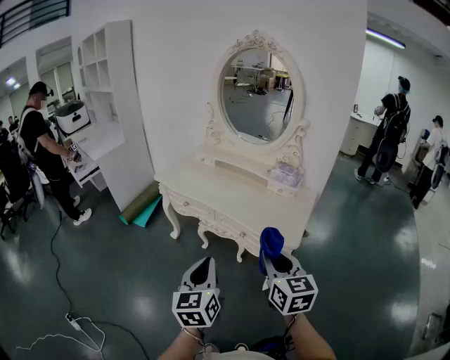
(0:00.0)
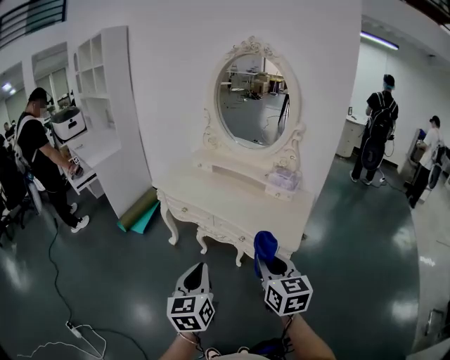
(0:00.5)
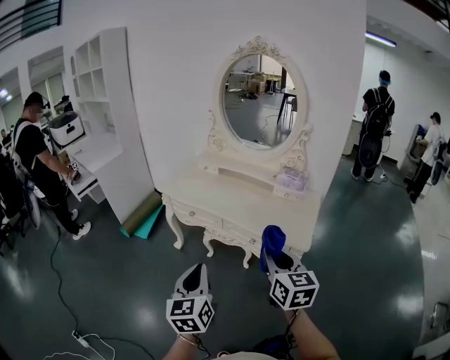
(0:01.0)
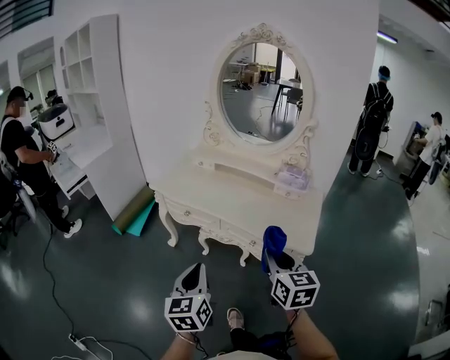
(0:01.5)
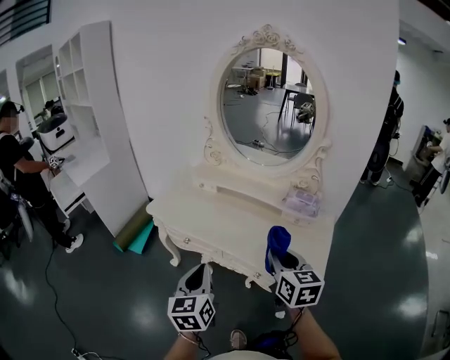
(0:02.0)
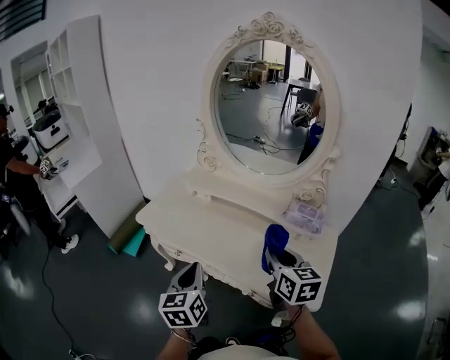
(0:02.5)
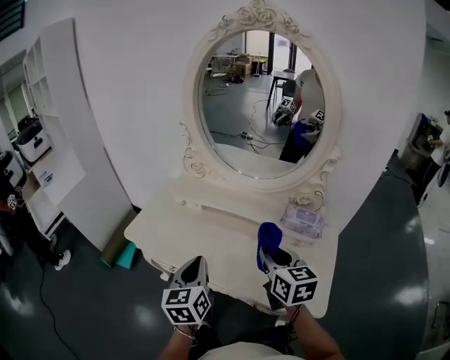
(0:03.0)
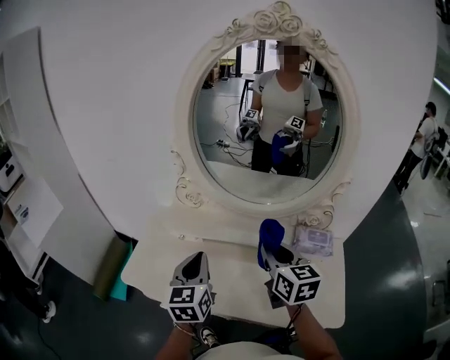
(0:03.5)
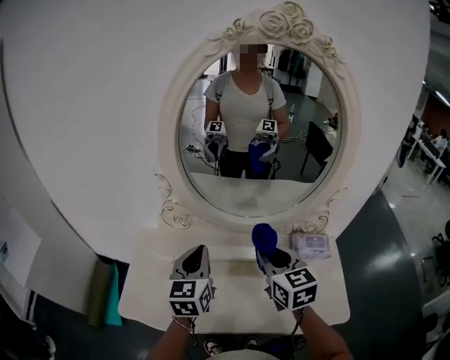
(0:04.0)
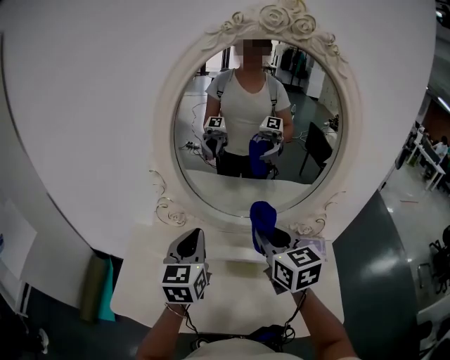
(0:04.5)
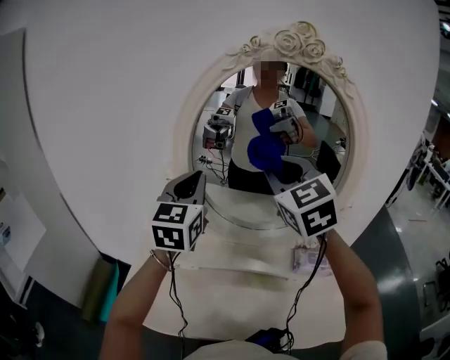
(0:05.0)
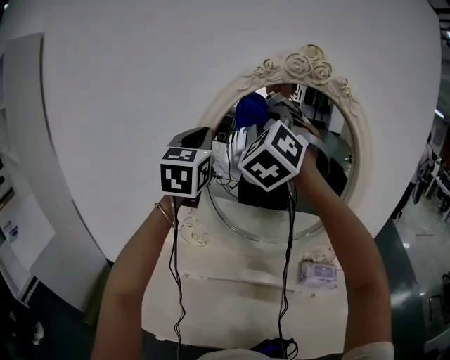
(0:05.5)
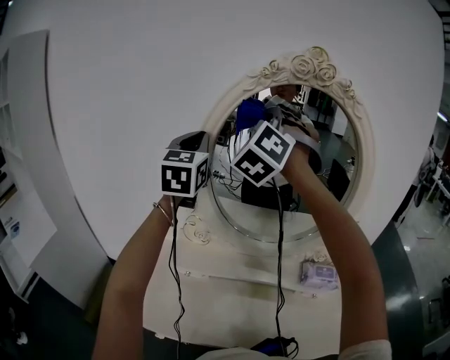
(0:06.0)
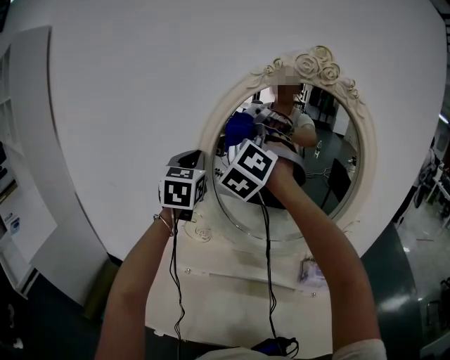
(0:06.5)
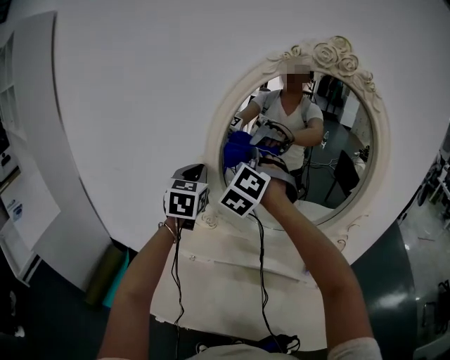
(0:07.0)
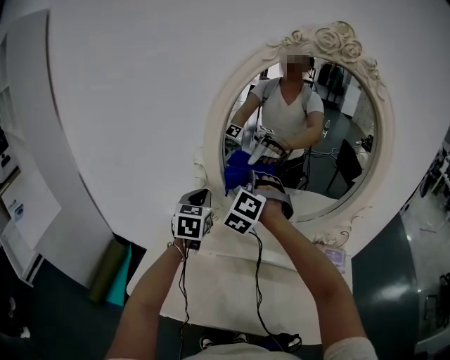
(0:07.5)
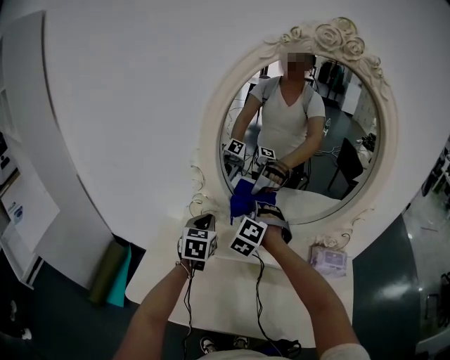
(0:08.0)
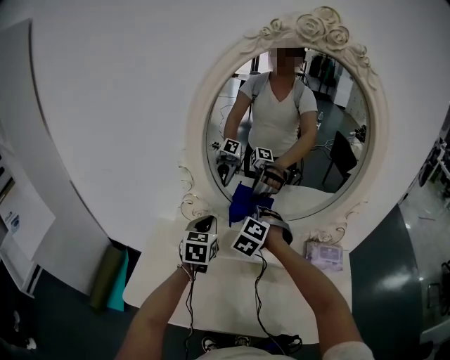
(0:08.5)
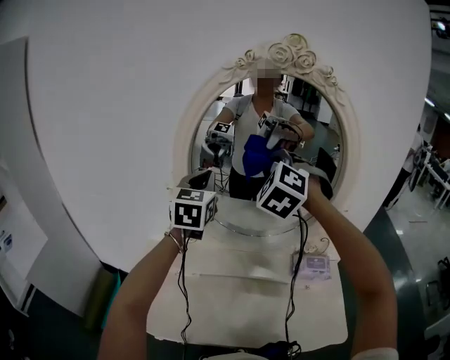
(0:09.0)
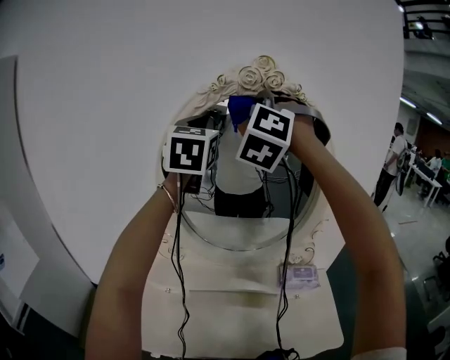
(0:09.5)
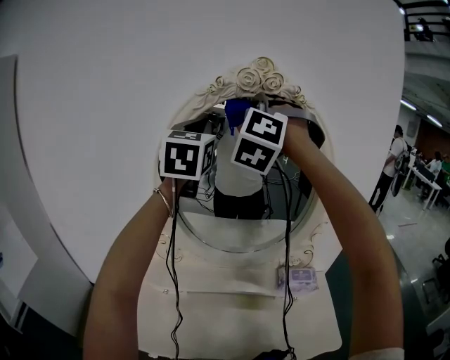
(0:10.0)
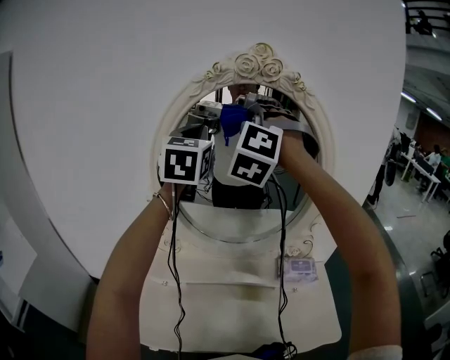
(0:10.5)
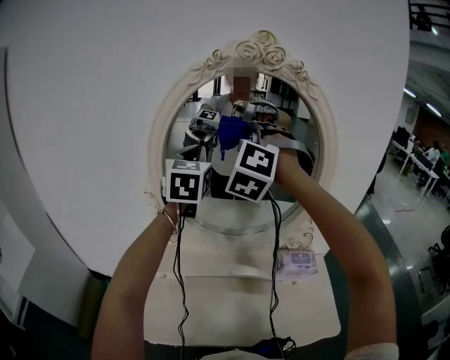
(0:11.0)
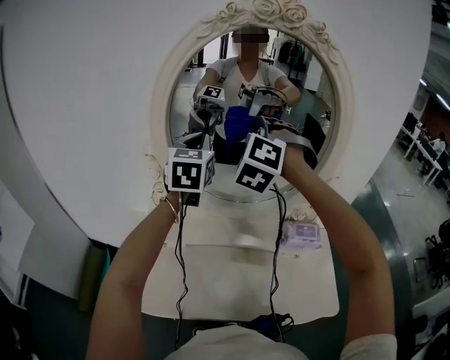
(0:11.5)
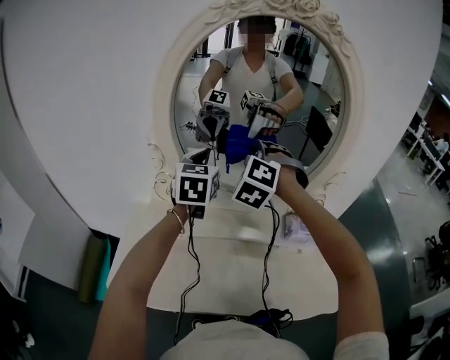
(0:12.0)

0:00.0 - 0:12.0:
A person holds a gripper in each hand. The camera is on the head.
0:00.0 - 0:02.0: The grippers both shift forward by roughly 25 cm.
0:02.0 - 0:04.0: Both grippers move forward, some 40 cm. The left gripper changes its angle by some 30 degrees.
0:04.0 - 0:06.0: Both grippers move upward and forward, approximately 35 cm. The left gripper rotates roughly 30 degrees. Meanwhile the right gripper rotates around the line of its fingers by some 60 degrees, counterclockwise from behind.
0:06.0 - 0:08.0: The grippers both shift downward by approximately 40 cm. The left gripper turns by roughly 30 degrees; the right gripper swivels roughly 30 degrees.
0:08.0 - 0:10.0: The grippers both shift upward by about 50 cm. The left gripper rotates about 30 degrees. The right gripper changes its angle by approximately 30 degrees.
0:10.0 - 0:12.0: The grippers both shift downward by approximately 30 cm. The right gripper changes its angle by roughly 30 degrees. The left gripper changes its angle by about 20 degrees.

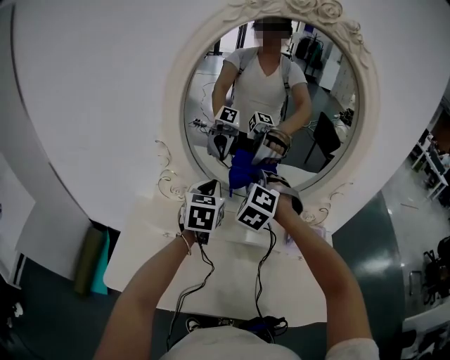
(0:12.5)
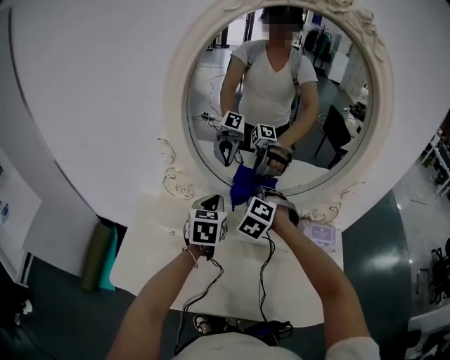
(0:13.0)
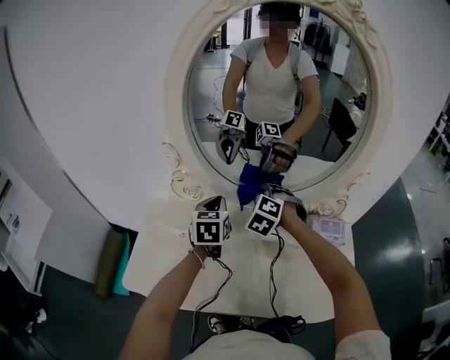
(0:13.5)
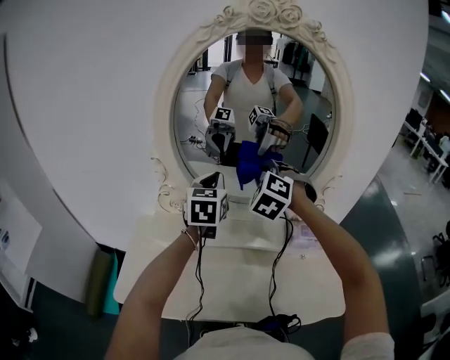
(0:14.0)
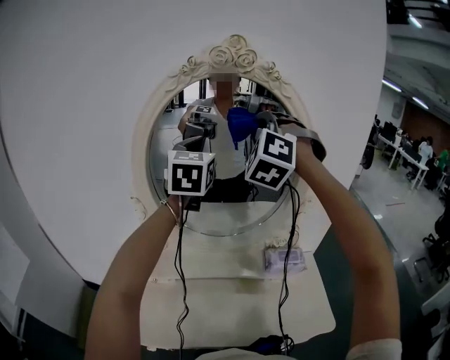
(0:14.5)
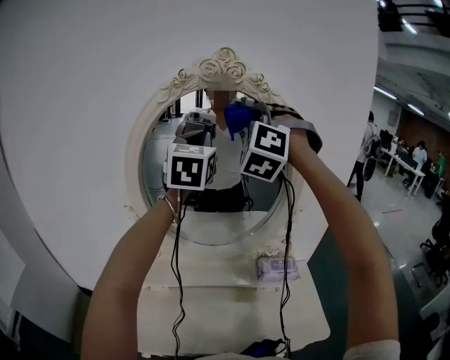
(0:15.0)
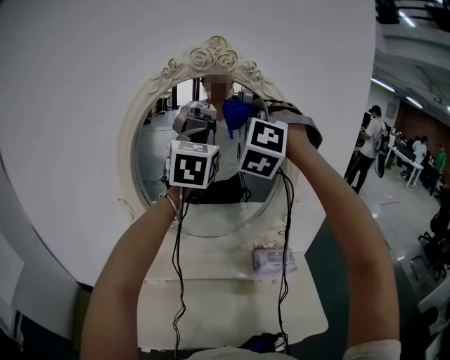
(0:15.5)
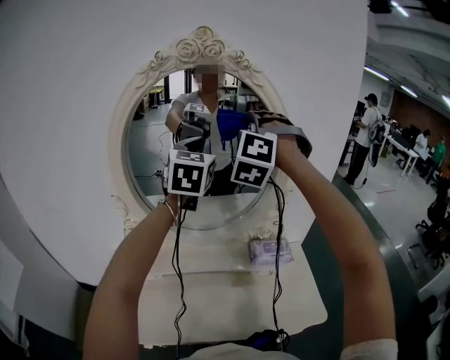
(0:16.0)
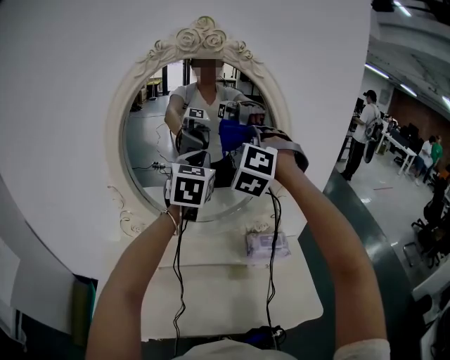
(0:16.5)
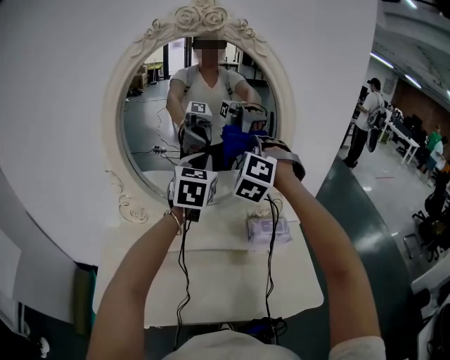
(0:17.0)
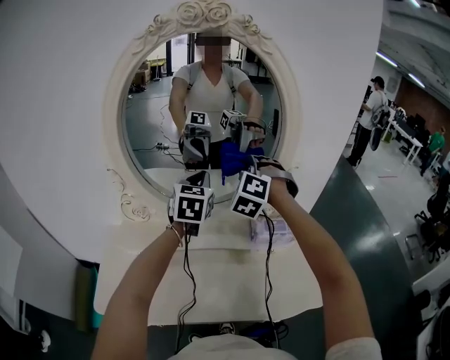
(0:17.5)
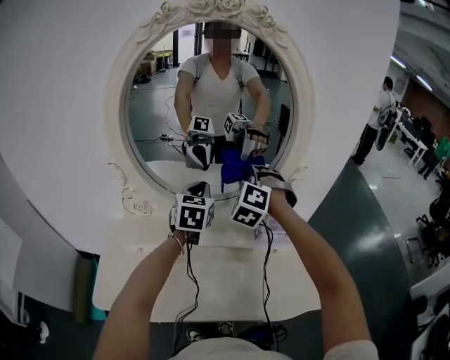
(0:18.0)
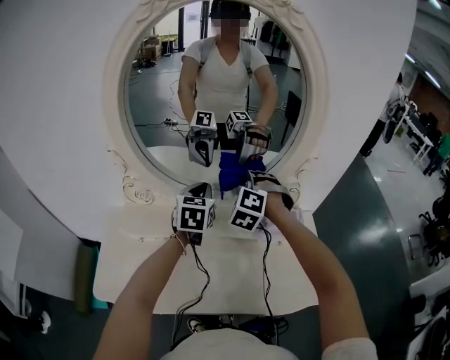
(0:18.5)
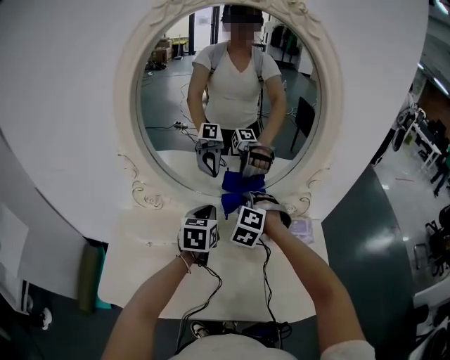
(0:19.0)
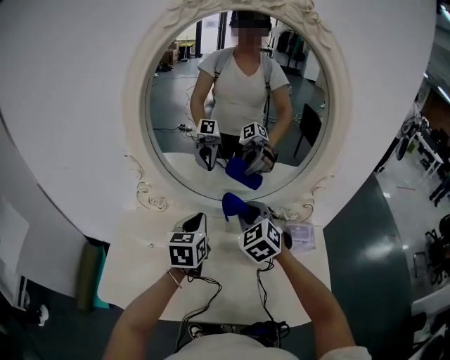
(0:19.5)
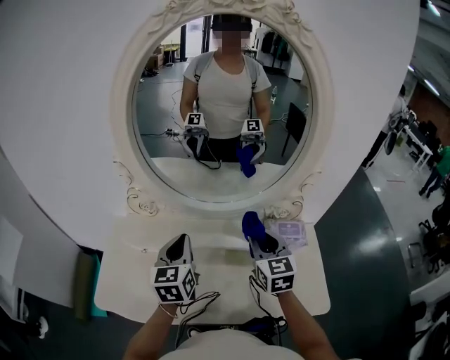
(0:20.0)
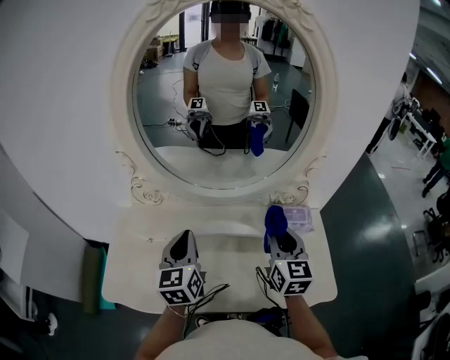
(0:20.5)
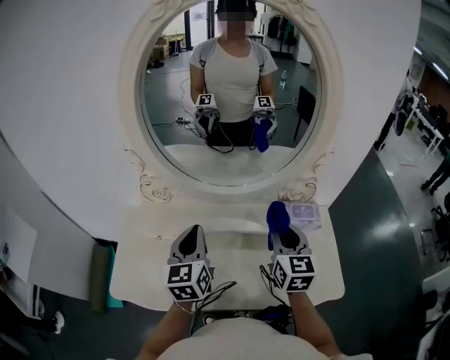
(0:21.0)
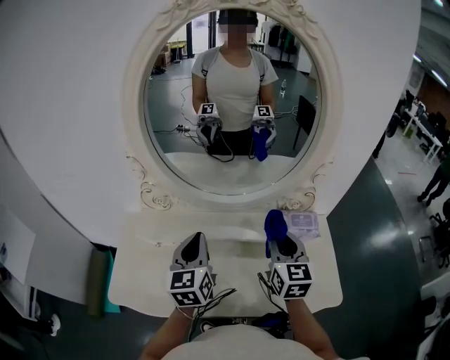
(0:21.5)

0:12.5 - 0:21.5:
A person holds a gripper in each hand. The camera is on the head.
0:12.5 - 0:14.5: The two grippers go roughly 30 cm upward. The right gripper rotates roughly 30 degrees; the left gripper changes its angle by roughly 30 degrees.
0:14.5 - 0:17.0: The left gripper travels downward and to the right by some 15 cm; the right gripper goes some 15 cm downward.
0:17.0 - 0:19.5: The right gripper shifts approximately 20 cm downward, and rotates approximately 40 degrees; the left gripper moves downward and to the left, roughly 25 cm, and swivels about 30 degrees.
0:19.5 - 0:21.5: The right gripper heads backward and to the right, covering roughly 15 cm, and twists roughly 40 degrees clockwise, seen from behind, while the left gripper goes approximately 10 cm backward.

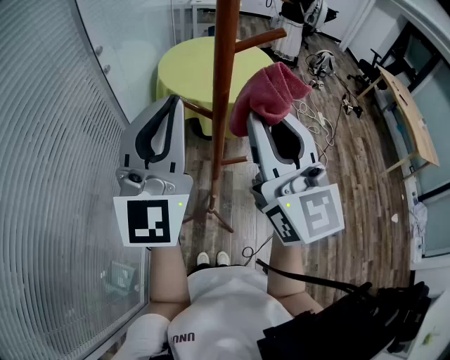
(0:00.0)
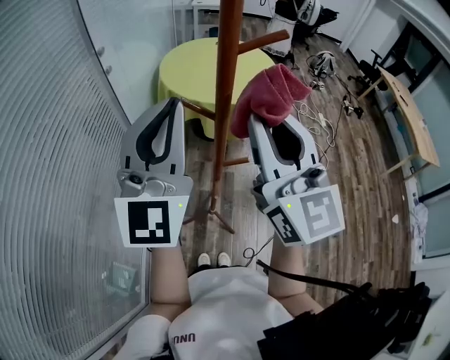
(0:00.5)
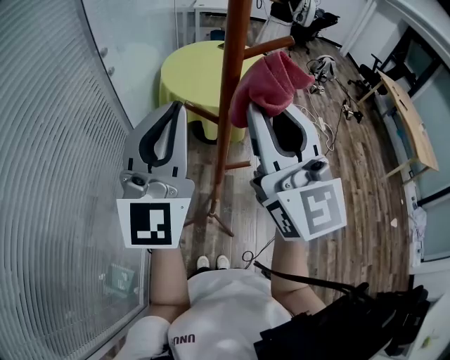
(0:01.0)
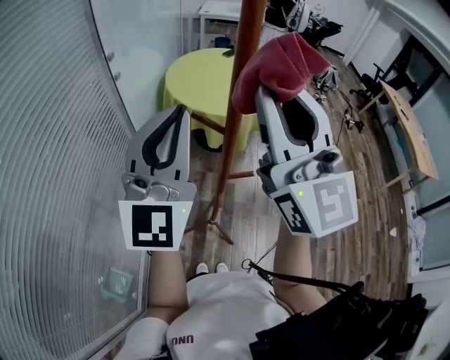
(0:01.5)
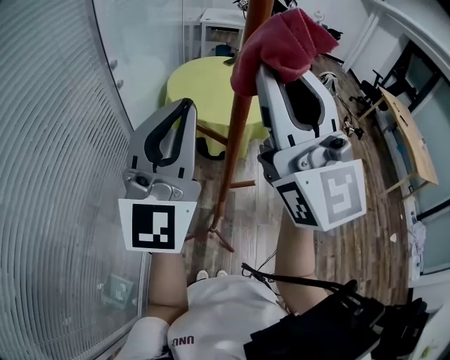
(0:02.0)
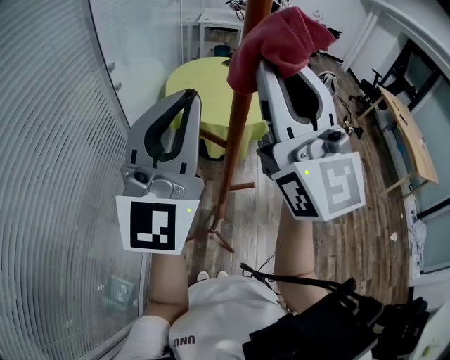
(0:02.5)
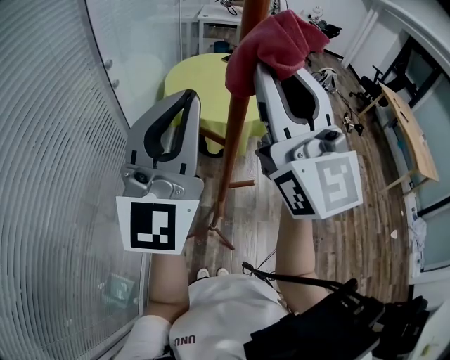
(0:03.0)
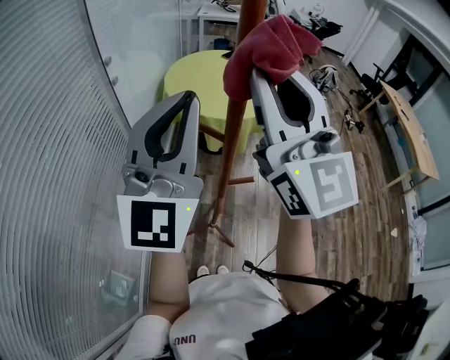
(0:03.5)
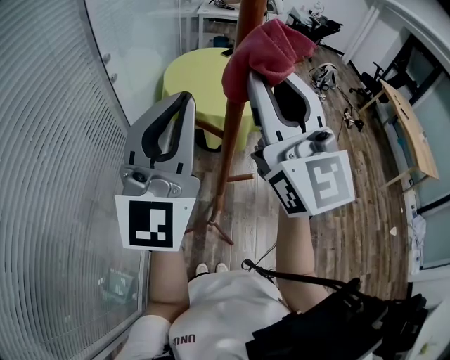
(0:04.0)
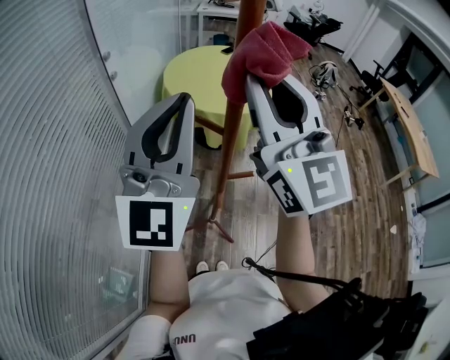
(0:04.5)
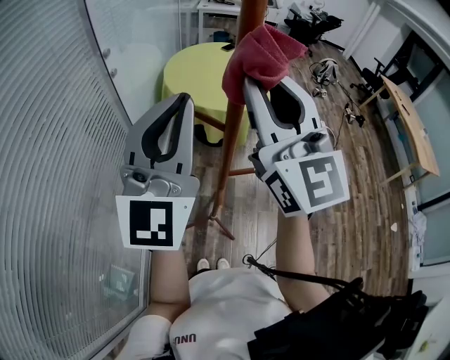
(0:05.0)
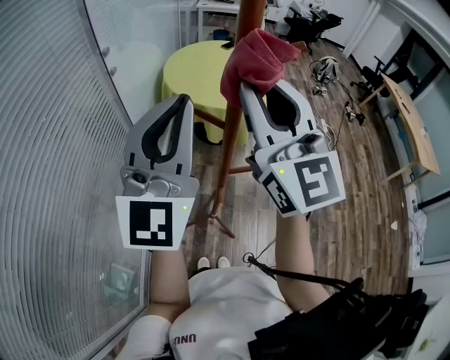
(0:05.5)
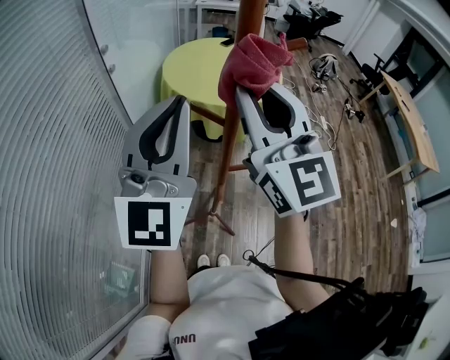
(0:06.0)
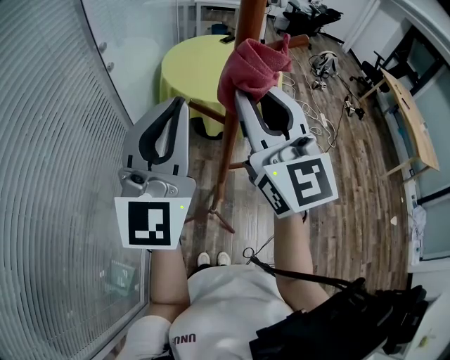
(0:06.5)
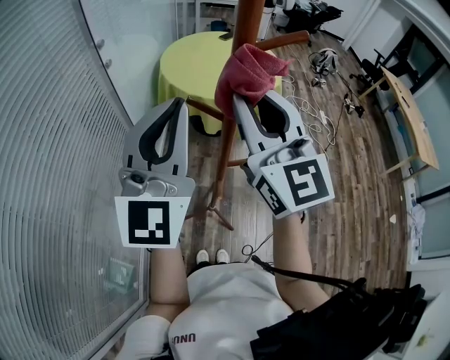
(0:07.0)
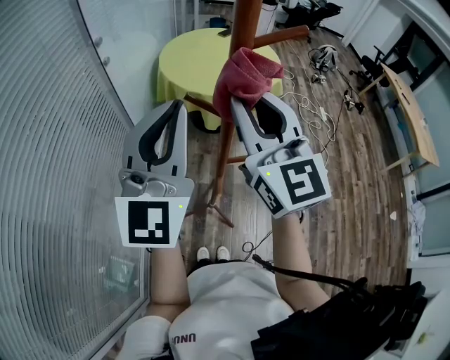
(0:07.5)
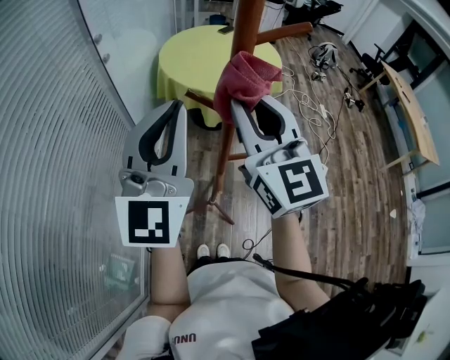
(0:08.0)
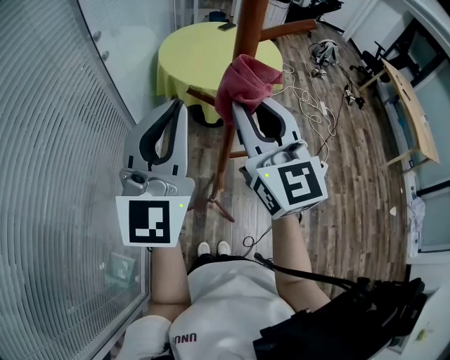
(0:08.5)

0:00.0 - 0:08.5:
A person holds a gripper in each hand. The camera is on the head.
0:00.0 - 0:02.0: The right gripper is displaced upward by roughly 10 cm.
0:02.0 - 0:04.0: The right gripper ends up about 5 cm from where it was.
0:04.0 - 0:06.5: The right gripper shifts about 5 cm downward.
0:06.5 - 0:08.5: The right gripper is displaced downward by roughly 5 cm.
